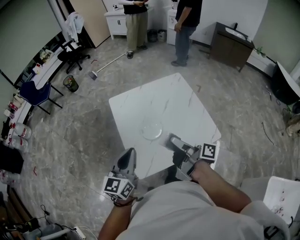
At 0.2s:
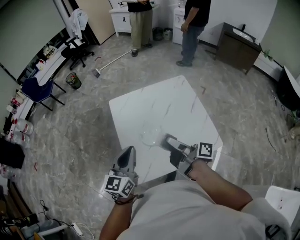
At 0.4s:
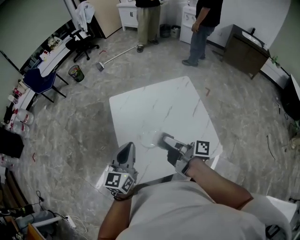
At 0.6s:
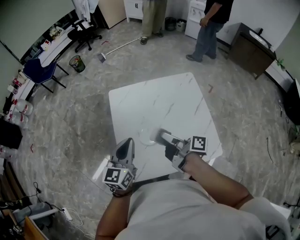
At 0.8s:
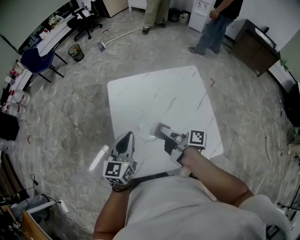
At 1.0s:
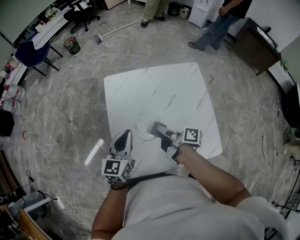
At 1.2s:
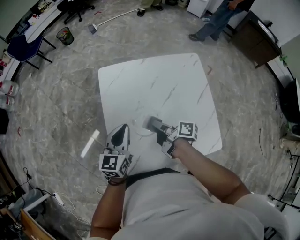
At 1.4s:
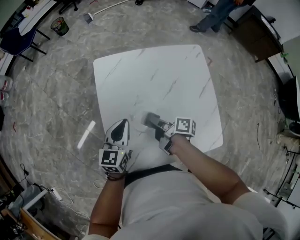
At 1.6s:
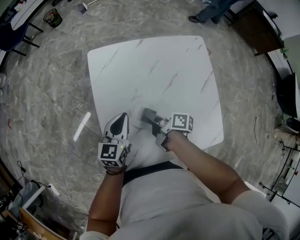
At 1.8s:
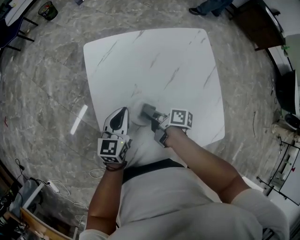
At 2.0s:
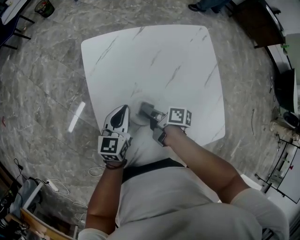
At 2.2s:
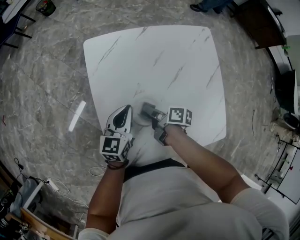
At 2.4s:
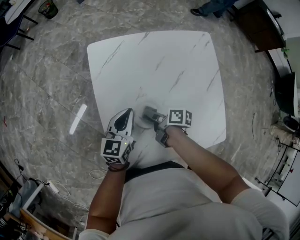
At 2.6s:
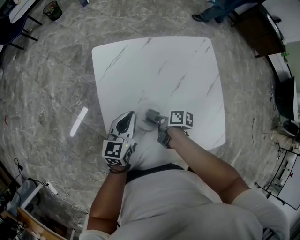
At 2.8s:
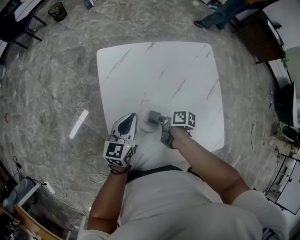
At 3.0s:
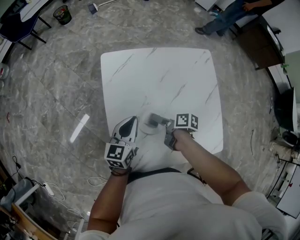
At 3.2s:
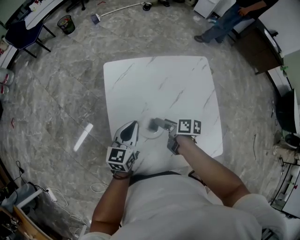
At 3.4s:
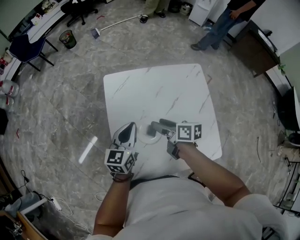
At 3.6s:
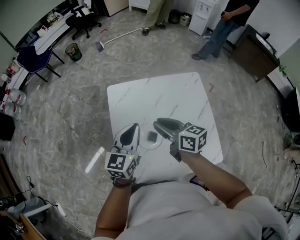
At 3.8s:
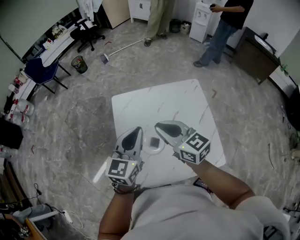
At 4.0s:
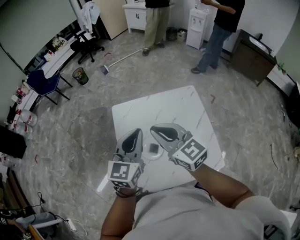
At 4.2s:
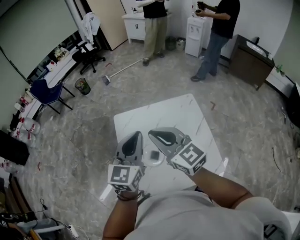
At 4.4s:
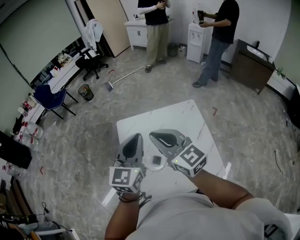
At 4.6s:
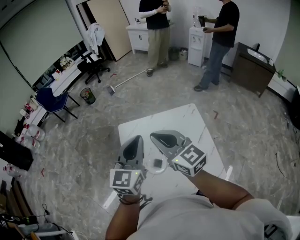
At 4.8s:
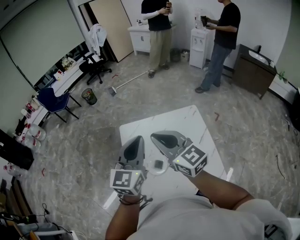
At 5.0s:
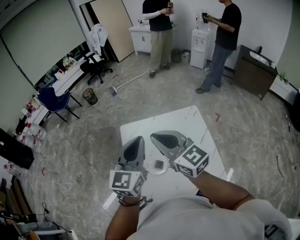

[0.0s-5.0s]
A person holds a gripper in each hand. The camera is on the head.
0.0s to 1.6s: The left gripper heads downward, covering approximately 30 cm, and changes its angle by some 20 degrees.
1.6s to 3.4s: The left gripper is displaced upward by some 10 cm.
3.4s to 5.0s: The left gripper travels upward by about 30 cm, and rotates approximately 20 degrees.

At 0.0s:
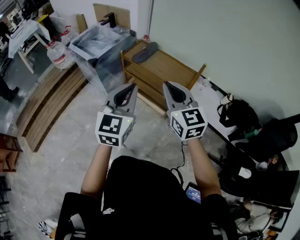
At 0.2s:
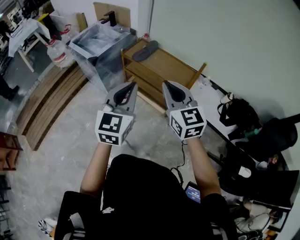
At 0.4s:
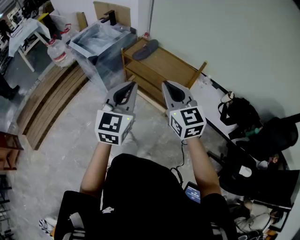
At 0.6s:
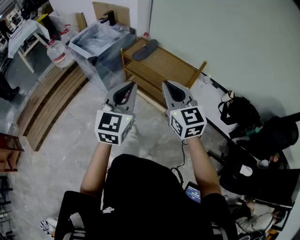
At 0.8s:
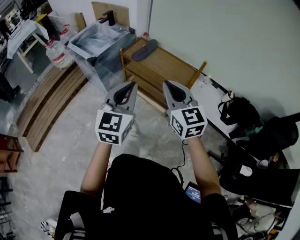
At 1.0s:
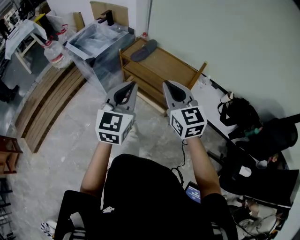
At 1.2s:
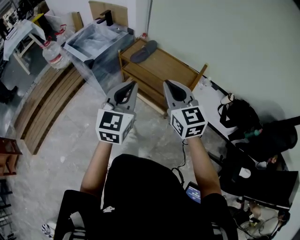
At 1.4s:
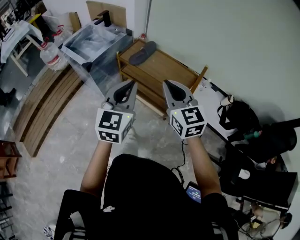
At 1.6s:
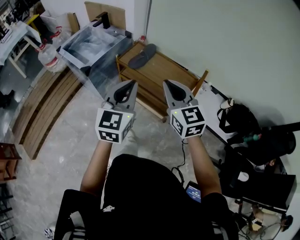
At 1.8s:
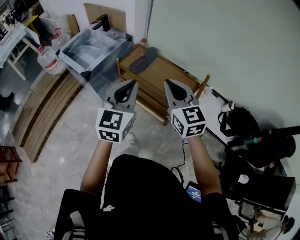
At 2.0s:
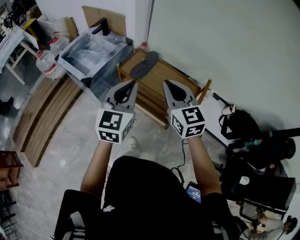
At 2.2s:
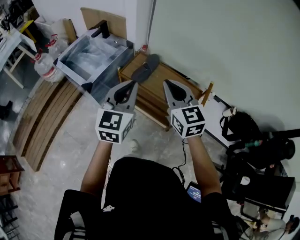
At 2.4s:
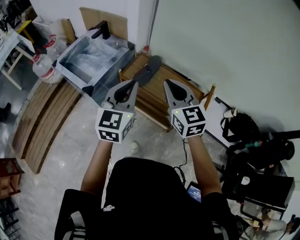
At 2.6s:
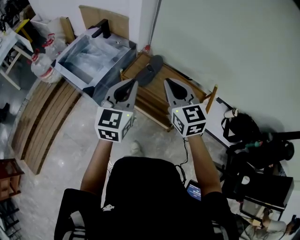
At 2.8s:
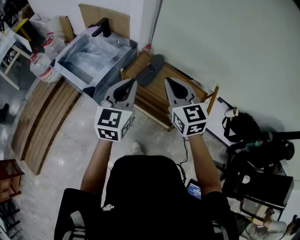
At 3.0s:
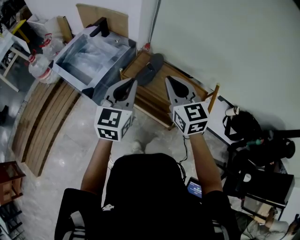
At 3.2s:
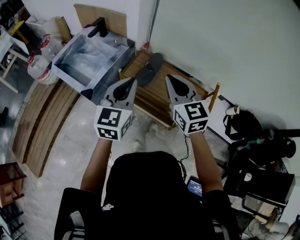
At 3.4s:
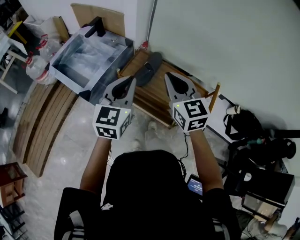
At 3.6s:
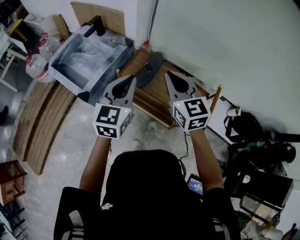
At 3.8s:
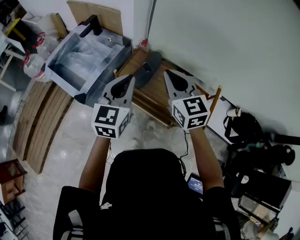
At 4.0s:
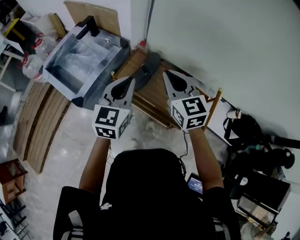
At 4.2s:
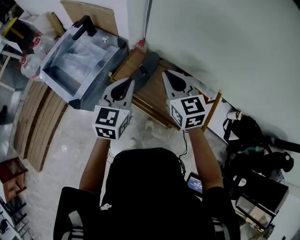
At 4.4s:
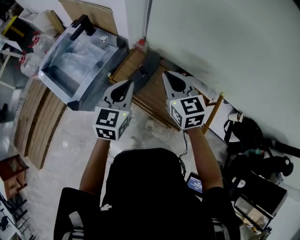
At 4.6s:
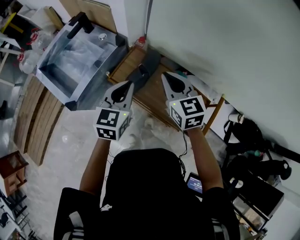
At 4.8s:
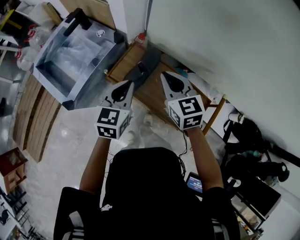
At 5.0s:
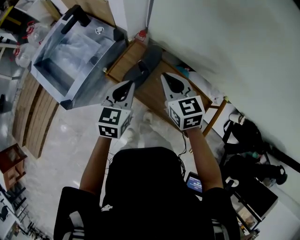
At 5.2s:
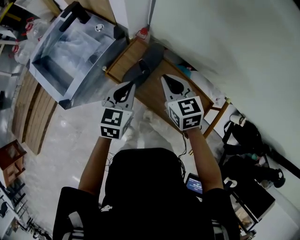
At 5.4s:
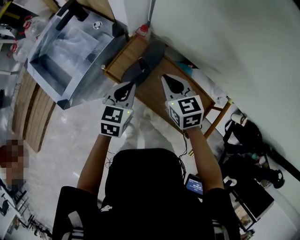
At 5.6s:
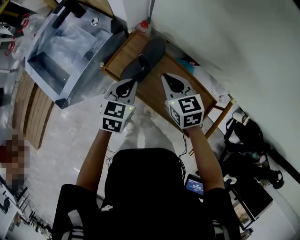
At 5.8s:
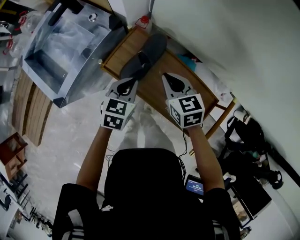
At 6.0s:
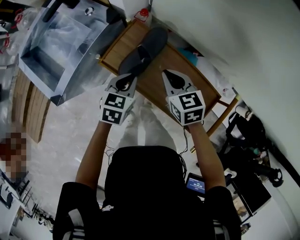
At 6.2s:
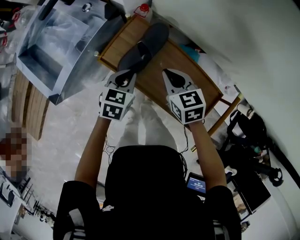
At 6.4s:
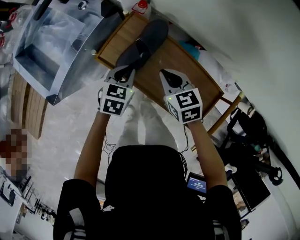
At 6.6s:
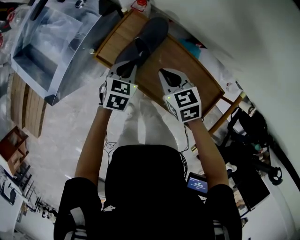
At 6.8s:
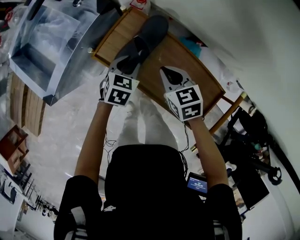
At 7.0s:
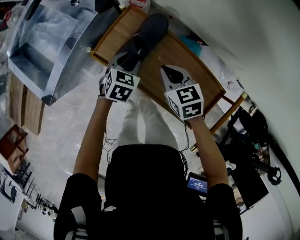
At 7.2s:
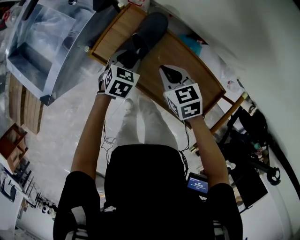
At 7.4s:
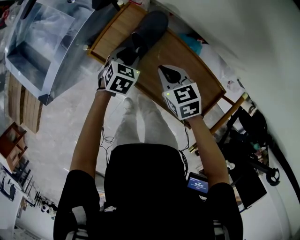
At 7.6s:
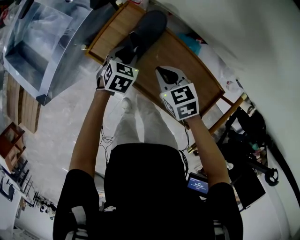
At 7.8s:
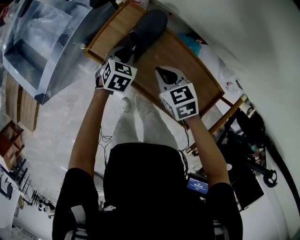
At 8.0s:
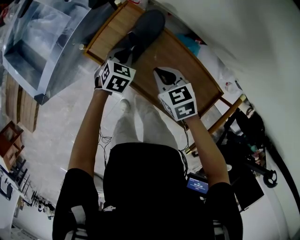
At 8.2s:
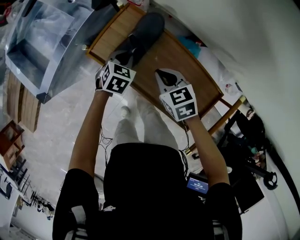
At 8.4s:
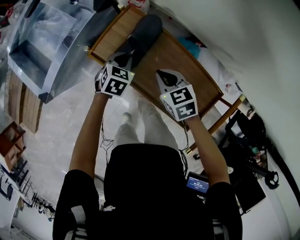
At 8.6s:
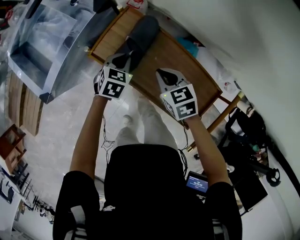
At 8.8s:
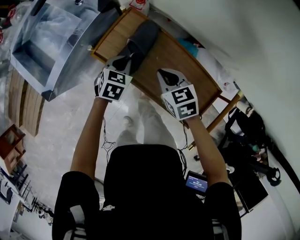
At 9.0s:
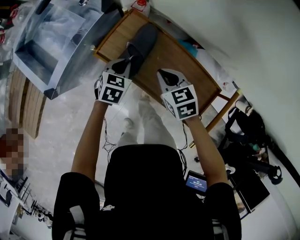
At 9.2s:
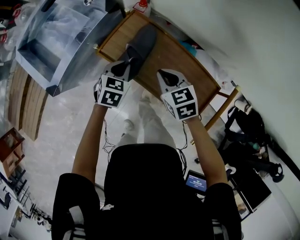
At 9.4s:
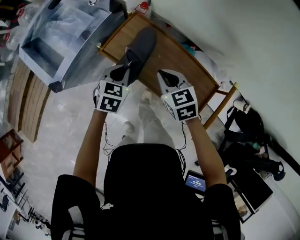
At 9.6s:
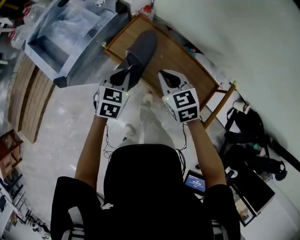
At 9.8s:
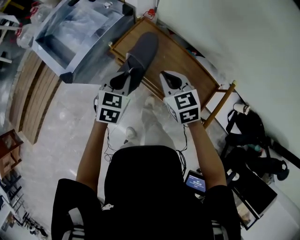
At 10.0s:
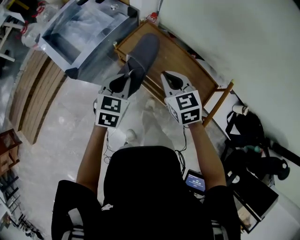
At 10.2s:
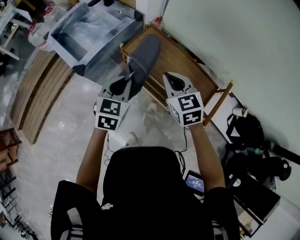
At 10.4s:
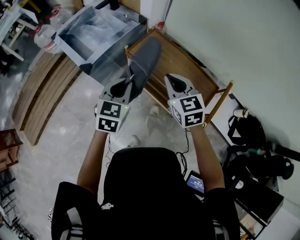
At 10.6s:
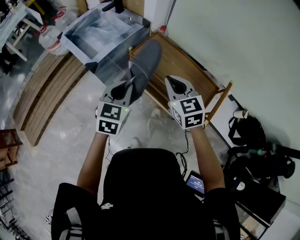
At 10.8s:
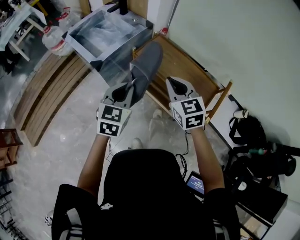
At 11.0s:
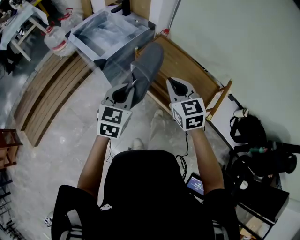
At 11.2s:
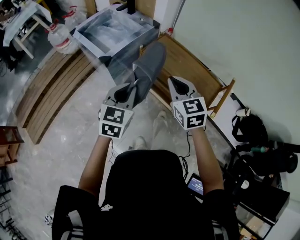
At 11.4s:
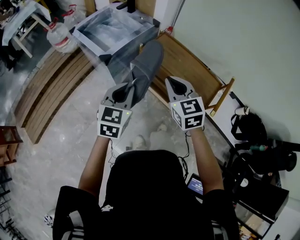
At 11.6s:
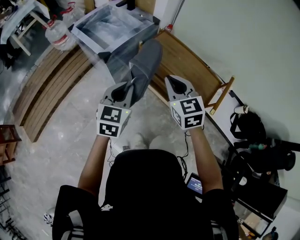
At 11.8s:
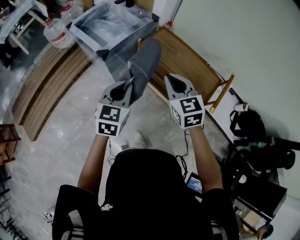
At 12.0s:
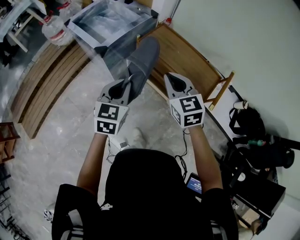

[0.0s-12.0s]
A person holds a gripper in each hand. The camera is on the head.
0.0s to 1.6s: Both grippers move forward, approximately 15 cm.
1.6s to 3.0s: The grippers both shift forward and to the left by roughly 25 cm.
3.0s to 4.4s: The right gripper travels forward and downward by about 20 cm; the left gripper travels forward, downward and to the right by approximately 20 cm.
4.4s to 6.0s: The grippers both shift downward by some 20 cm. The left gripper changes its angle by about 30 degrees. Meanwhile the right gripper turns by approximately 20 degrees.
6.0s to 7.6s: The left gripper moves downward and forward, about 15 cm, and opens its fingers, while the right gripper travels downward by some 10 cm.
7.6s to 9.0s: The right gripper shifts by roughly 5 cm, while the left gripper shifts some 5 cm upward, and closes up.
9.0s to 10.4s: The two grippers go about 30 cm upward, backward and to the left. The left gripper changes its angle by about 20 degrees. The right gripper swivels roughly 20 degrees.
10.4s to 12.0s: Both grippers travel together backward and to the left, approximately 15 cm.

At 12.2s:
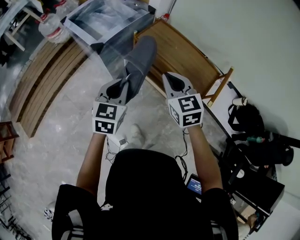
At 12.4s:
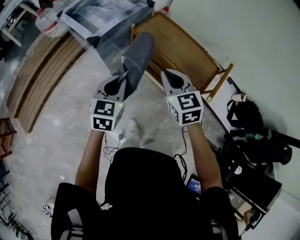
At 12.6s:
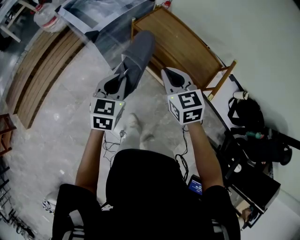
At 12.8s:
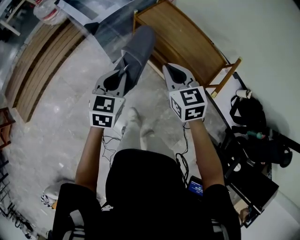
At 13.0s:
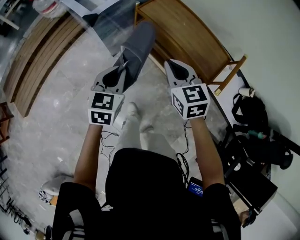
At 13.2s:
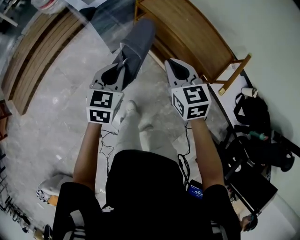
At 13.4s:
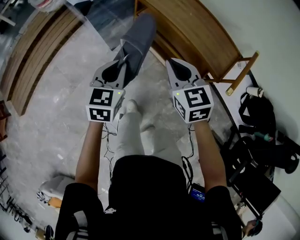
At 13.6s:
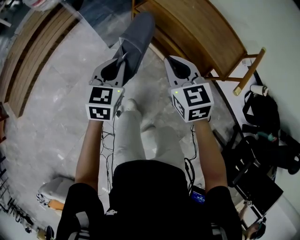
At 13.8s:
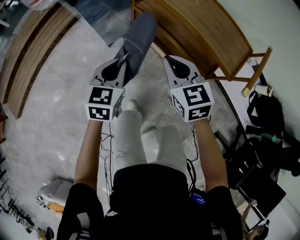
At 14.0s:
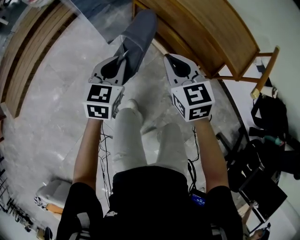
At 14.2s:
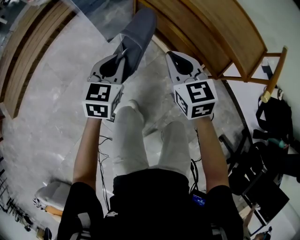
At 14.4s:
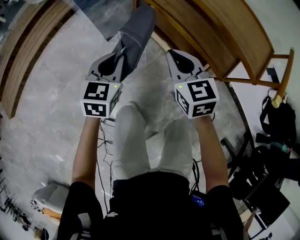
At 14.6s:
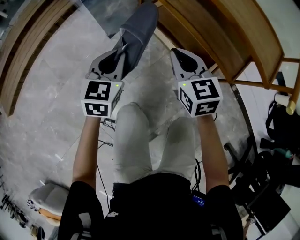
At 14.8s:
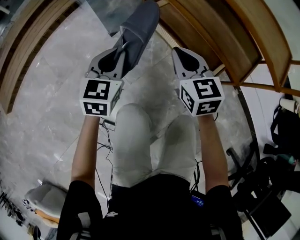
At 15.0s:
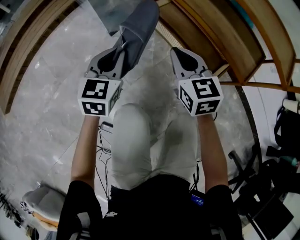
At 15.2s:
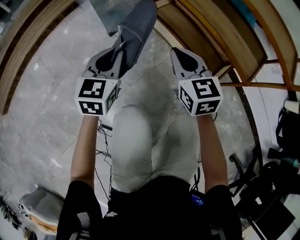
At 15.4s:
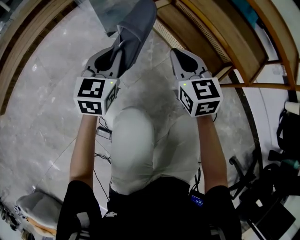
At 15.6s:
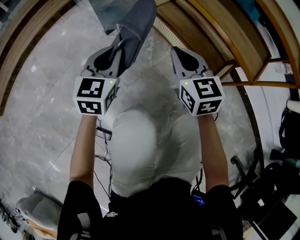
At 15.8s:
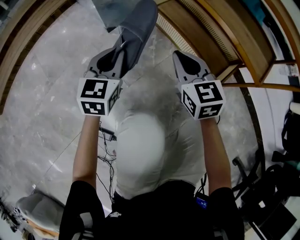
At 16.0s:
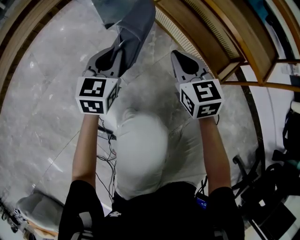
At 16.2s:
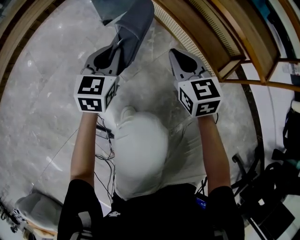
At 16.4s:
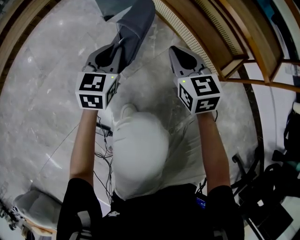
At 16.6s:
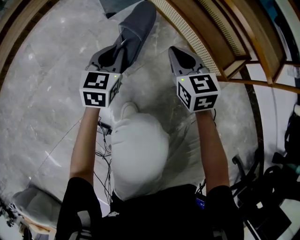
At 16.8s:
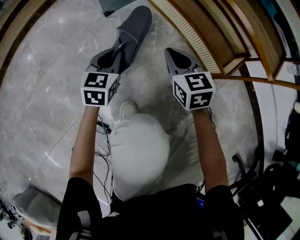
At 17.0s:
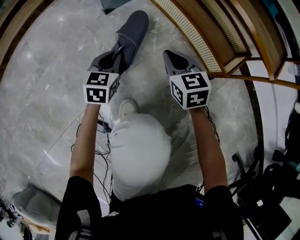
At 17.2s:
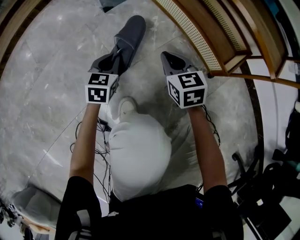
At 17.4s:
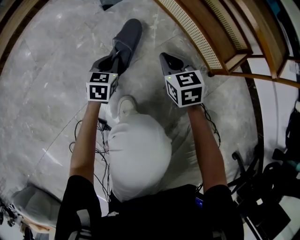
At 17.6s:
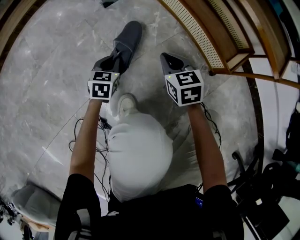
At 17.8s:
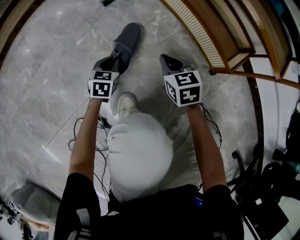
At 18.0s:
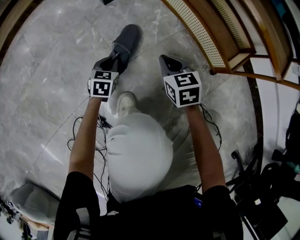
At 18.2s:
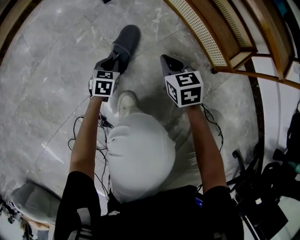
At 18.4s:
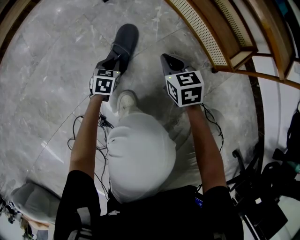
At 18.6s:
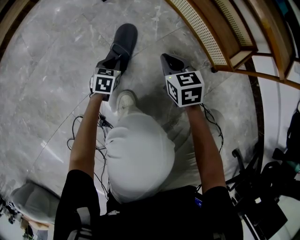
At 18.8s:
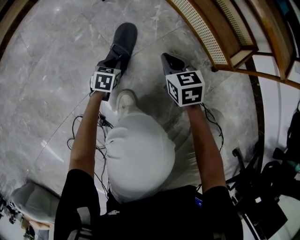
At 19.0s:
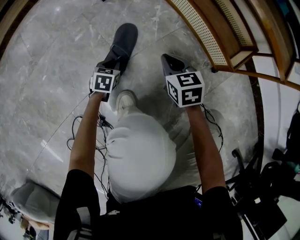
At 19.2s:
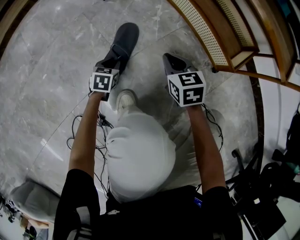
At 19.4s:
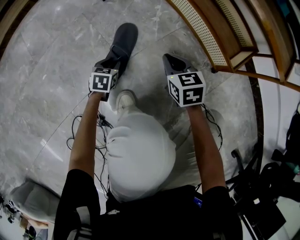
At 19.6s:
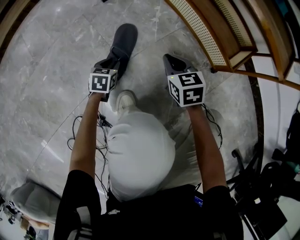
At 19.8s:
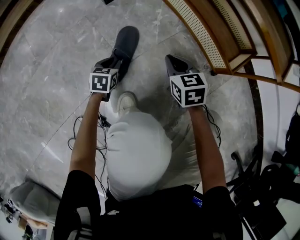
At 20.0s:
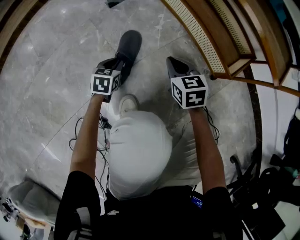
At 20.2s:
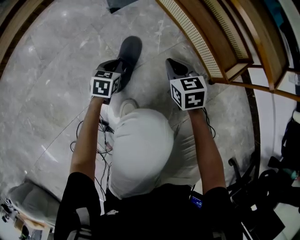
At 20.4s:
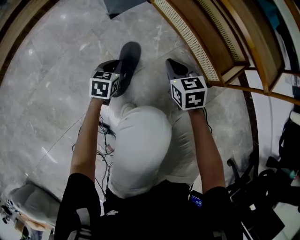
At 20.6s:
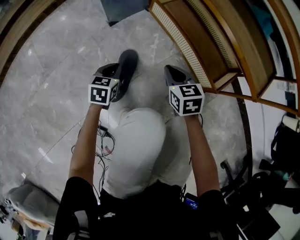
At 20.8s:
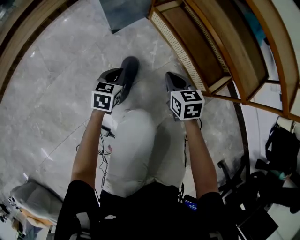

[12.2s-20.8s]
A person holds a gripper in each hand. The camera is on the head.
12.2s to 13.6s: Both grippers travel together downward, roughly 25 cm.
13.6s to 15.0s: Both grippers move downward, about 30 cm.
15.0s to 16.6s: The grippers both shift downward by roughly 20 cm.
16.6s to 18.0s: The right gripper travels downward and backward by approximately 15 cm. The left gripper heads downward, covering approximately 20 cm.
18.0s to 19.4s: The grippers move only a little.
19.4s to 20.8s: The right gripper shifts some 15 cm upward and forward; the left gripper goes roughly 25 cm upward, and closes.
